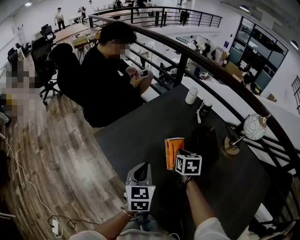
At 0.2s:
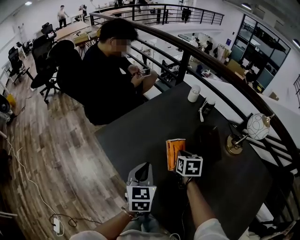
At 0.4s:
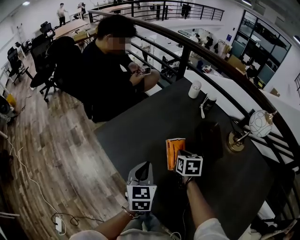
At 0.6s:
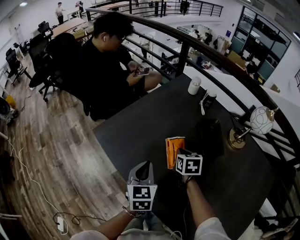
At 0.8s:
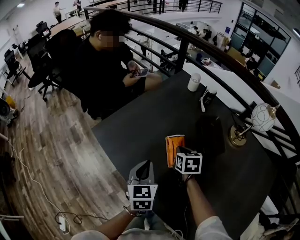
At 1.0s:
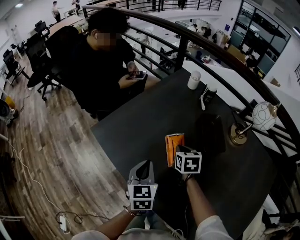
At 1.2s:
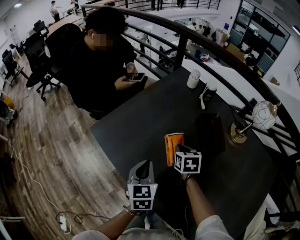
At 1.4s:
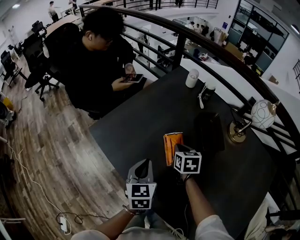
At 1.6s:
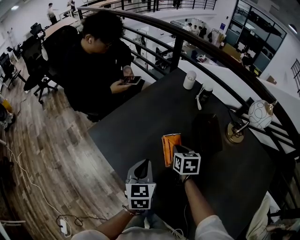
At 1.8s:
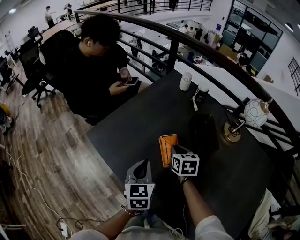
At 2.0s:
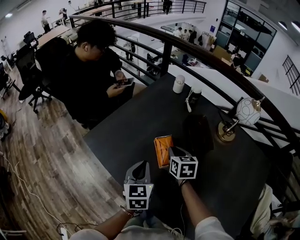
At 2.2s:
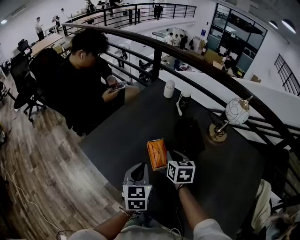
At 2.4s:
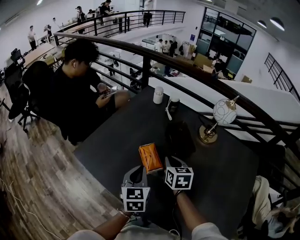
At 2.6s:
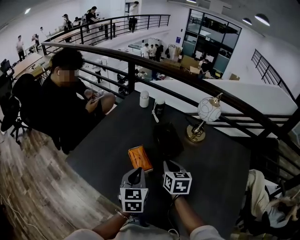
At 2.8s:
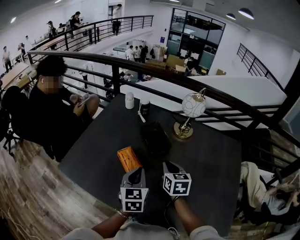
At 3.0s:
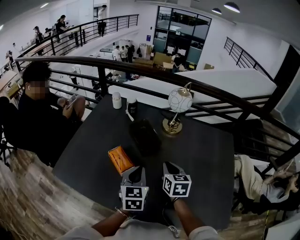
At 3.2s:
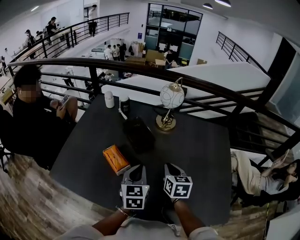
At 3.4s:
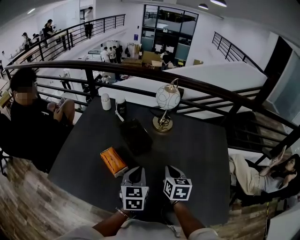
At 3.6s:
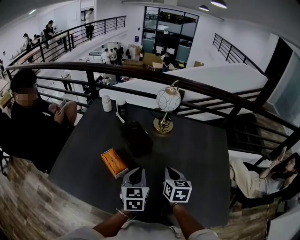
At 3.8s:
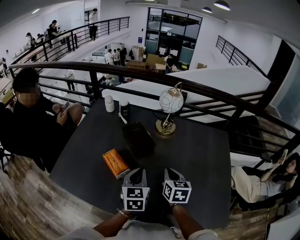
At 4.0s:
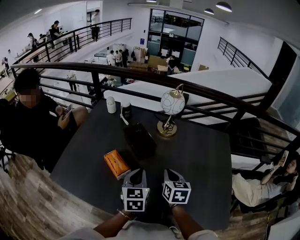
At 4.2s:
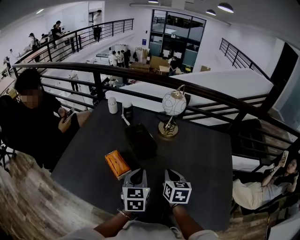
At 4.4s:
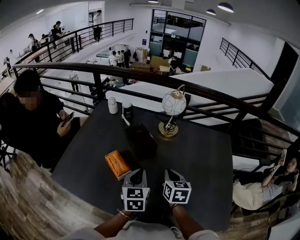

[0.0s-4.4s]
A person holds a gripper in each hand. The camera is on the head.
0.0s to 1.4s: There are only small adjustments of the grippers.
1.4s to 3.0s: The right gripper shifts by roughly 25 cm, and swivels about 30 degrees. Meanwhile the left gripper changes place by approximately 20 cm, and changes its angle by some 30 degrees.
3.0s to 4.4s: The grippers make only small movements.

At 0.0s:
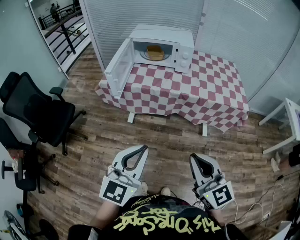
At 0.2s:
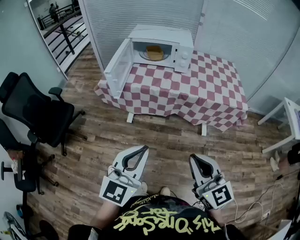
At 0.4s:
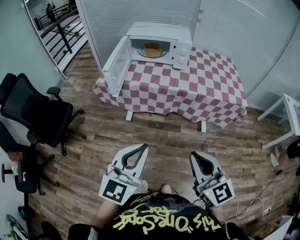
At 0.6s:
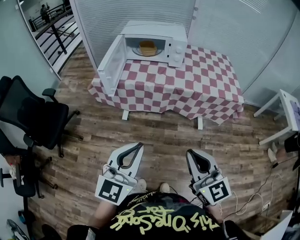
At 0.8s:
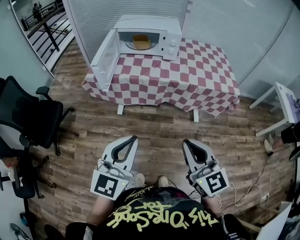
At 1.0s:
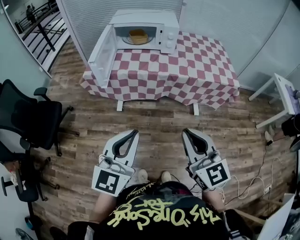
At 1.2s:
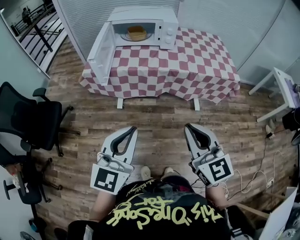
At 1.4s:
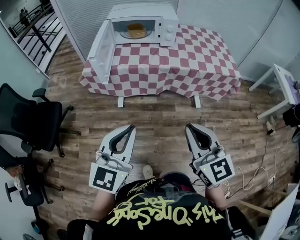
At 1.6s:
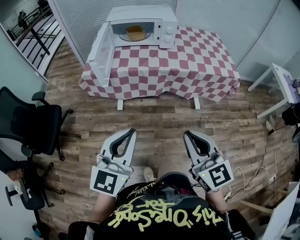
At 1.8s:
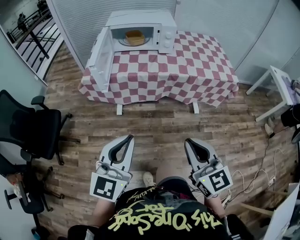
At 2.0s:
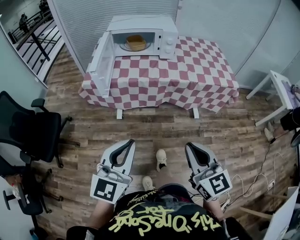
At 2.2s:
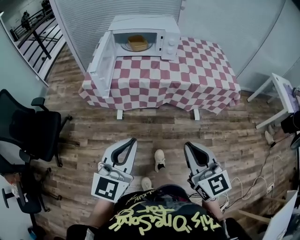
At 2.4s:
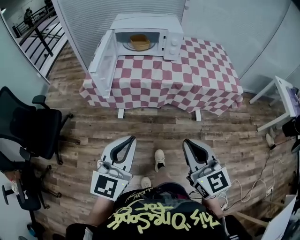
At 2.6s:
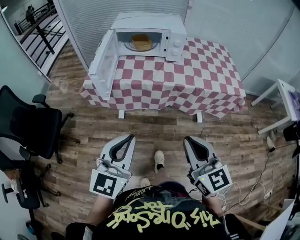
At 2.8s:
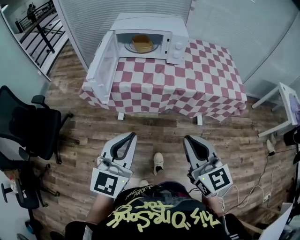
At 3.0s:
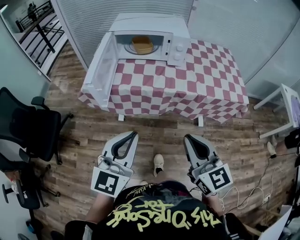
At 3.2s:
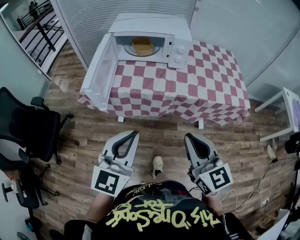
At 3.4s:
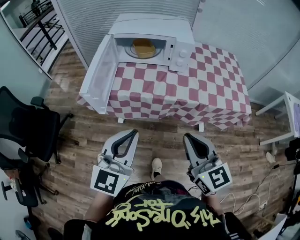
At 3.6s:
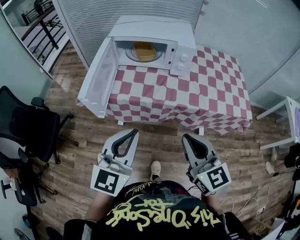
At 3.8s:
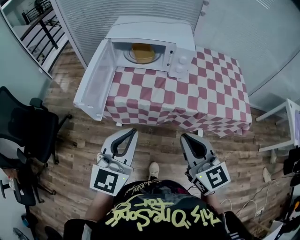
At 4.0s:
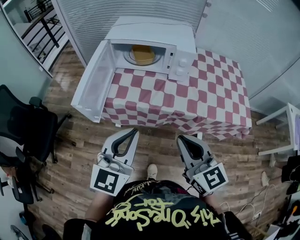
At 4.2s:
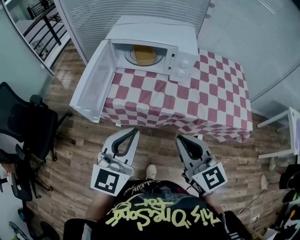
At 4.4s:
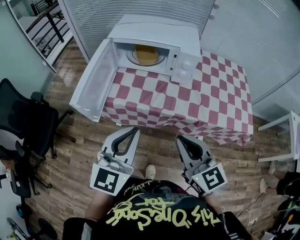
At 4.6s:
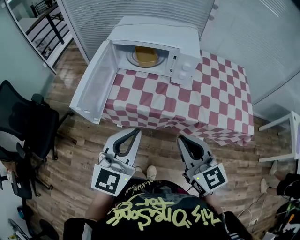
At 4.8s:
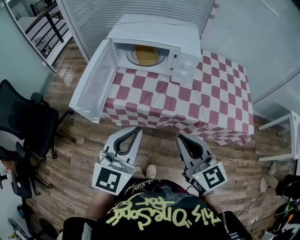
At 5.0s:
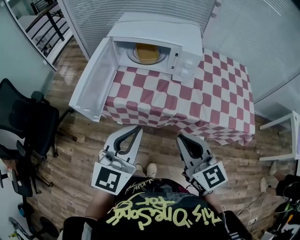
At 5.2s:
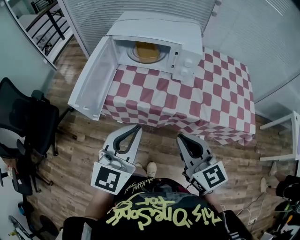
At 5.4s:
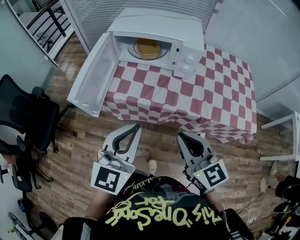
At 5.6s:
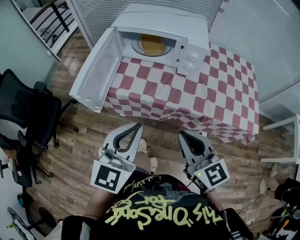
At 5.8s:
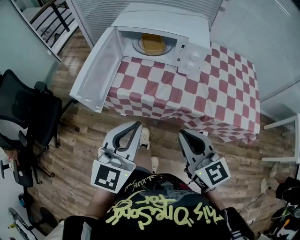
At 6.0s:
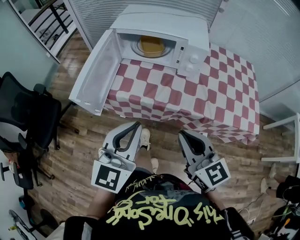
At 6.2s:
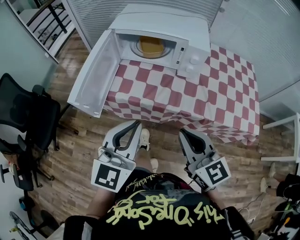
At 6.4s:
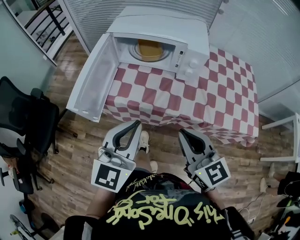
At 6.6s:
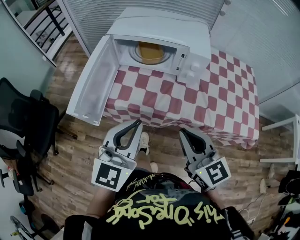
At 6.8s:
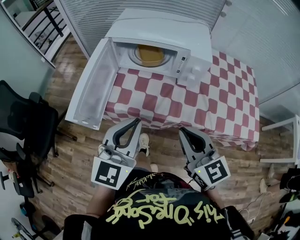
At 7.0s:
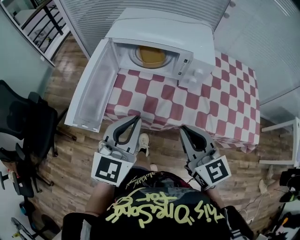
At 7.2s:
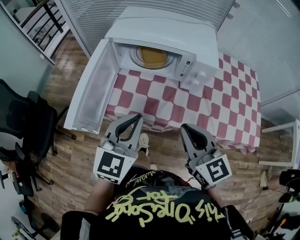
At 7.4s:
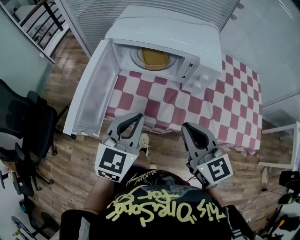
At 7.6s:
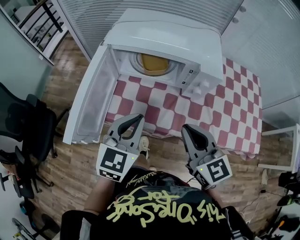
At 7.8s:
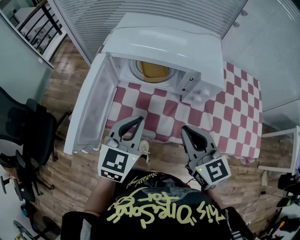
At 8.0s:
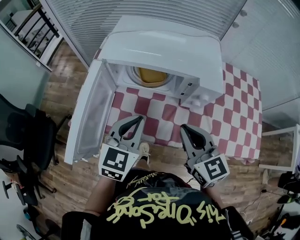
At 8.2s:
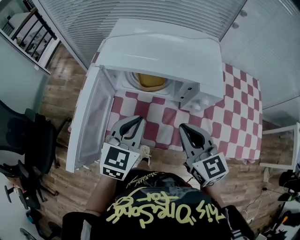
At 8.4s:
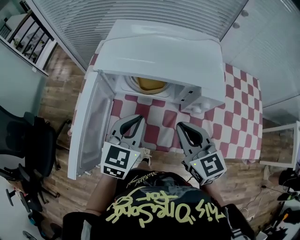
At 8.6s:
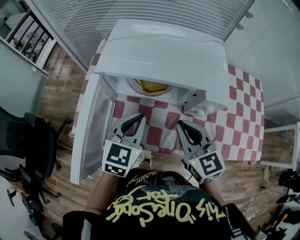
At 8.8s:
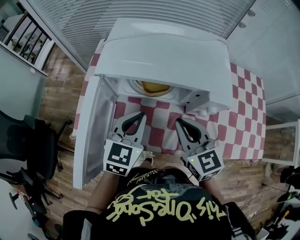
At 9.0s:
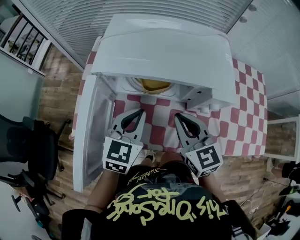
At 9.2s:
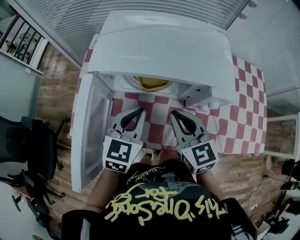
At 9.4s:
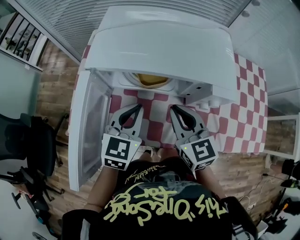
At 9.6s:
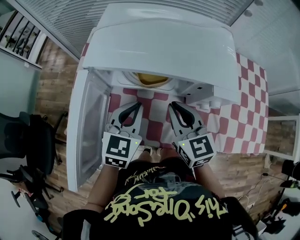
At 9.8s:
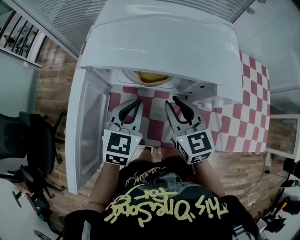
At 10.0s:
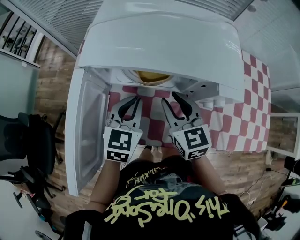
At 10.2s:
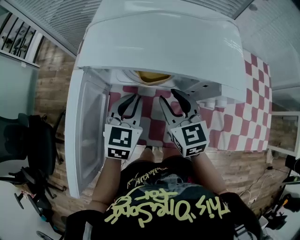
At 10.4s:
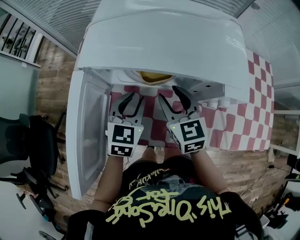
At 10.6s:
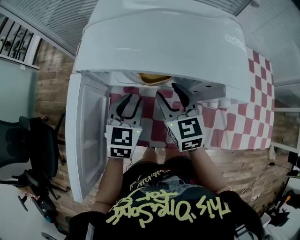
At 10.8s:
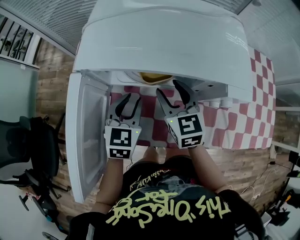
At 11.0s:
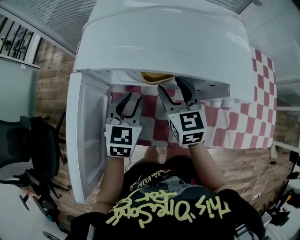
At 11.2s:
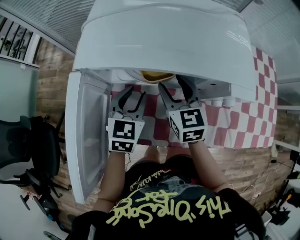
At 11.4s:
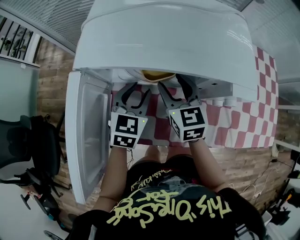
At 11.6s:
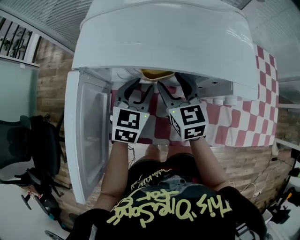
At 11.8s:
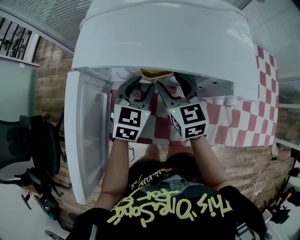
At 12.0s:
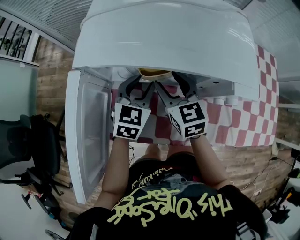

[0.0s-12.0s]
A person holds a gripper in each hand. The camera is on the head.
0.0s to 1.6s: Both grippers travel together to the left, about 5 cm.
1.6s to 3.0s: Both grippers move forward, approximately 15 cm.
3.0s to 4.4s: The left gripper moves forward and to the right, about 15 cm; the right gripper shifts about 15 cm forward.
4.4s to 6.0s: The grippers make only small movements.
6.0s to 7.6s: The grippers both shift forward by roughly 15 cm.
7.6s to 9.0s: The two grippers go roughly 15 cm forward.
9.0s to 10.4s: The right gripper moves forward and downward, approximately 10 cm, and opens; the left gripper is displaced downward by about 5 cm, and opens its fingers.
10.4s to 12.0s: The left gripper ends up approximately 5 cm from where it was.

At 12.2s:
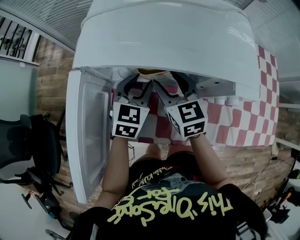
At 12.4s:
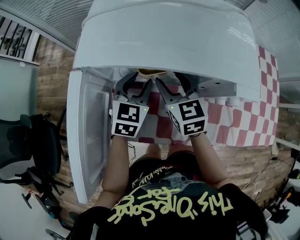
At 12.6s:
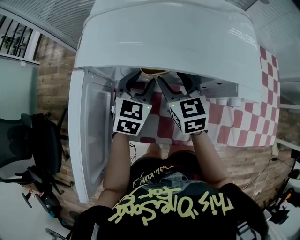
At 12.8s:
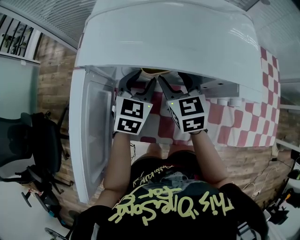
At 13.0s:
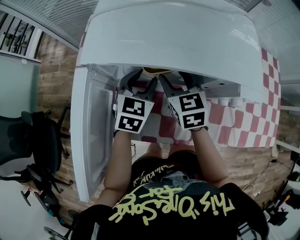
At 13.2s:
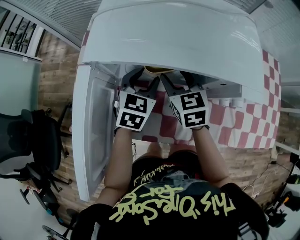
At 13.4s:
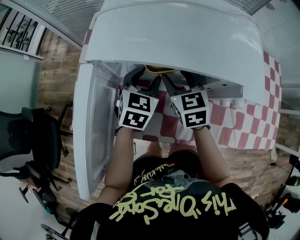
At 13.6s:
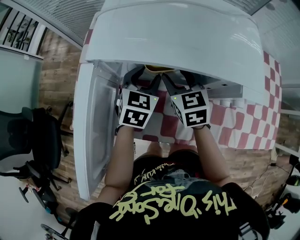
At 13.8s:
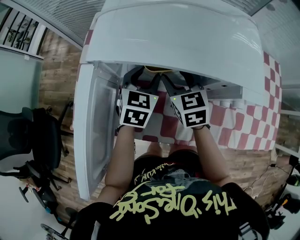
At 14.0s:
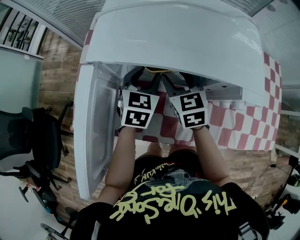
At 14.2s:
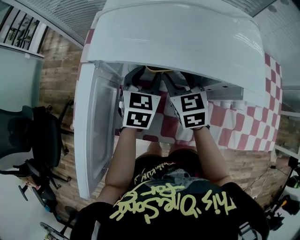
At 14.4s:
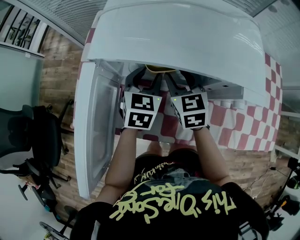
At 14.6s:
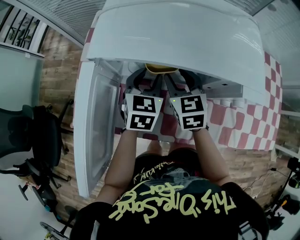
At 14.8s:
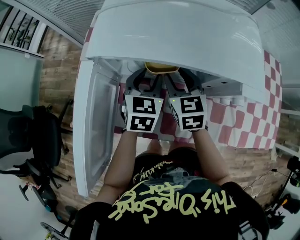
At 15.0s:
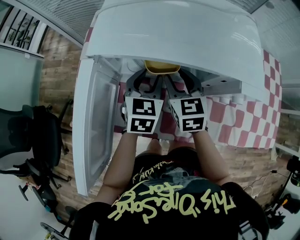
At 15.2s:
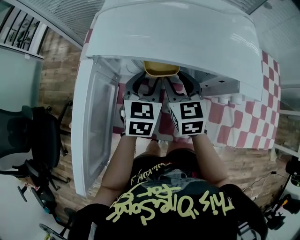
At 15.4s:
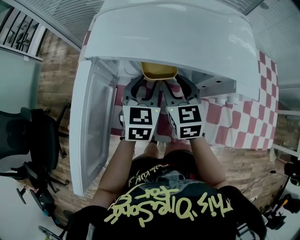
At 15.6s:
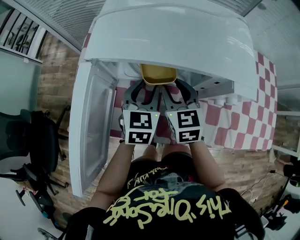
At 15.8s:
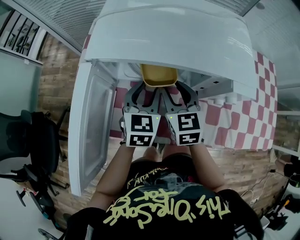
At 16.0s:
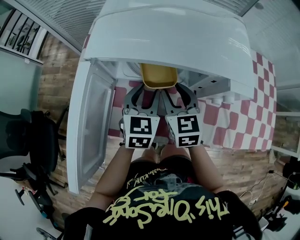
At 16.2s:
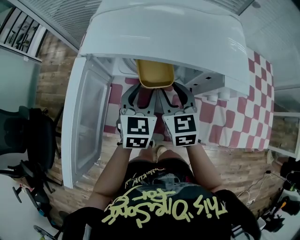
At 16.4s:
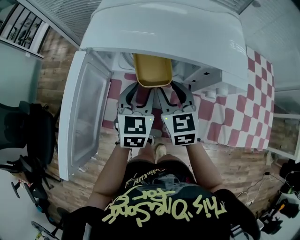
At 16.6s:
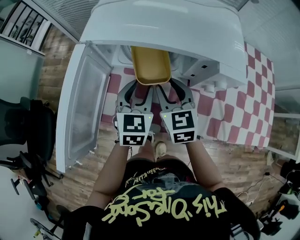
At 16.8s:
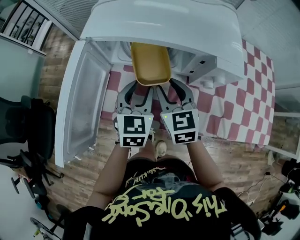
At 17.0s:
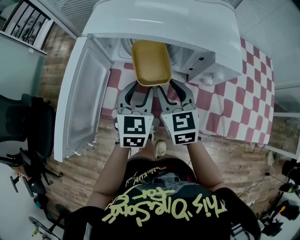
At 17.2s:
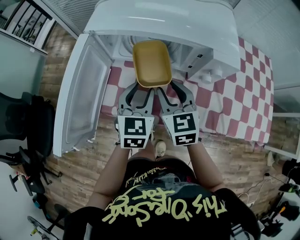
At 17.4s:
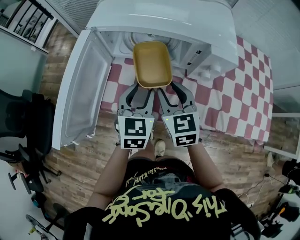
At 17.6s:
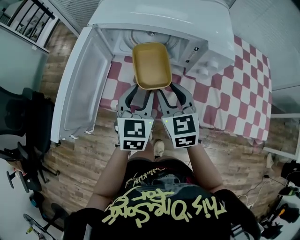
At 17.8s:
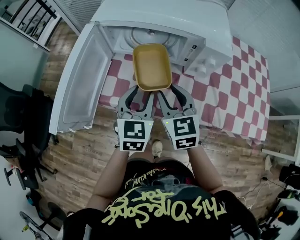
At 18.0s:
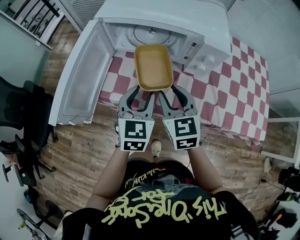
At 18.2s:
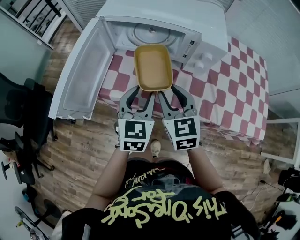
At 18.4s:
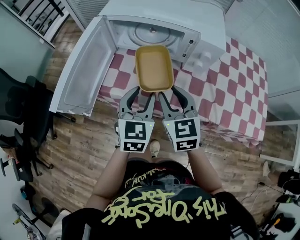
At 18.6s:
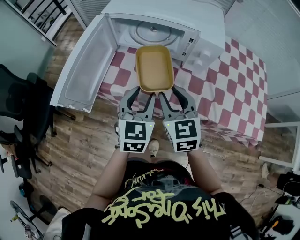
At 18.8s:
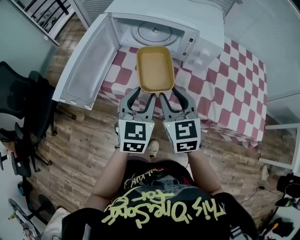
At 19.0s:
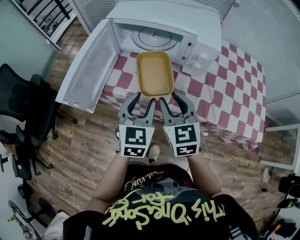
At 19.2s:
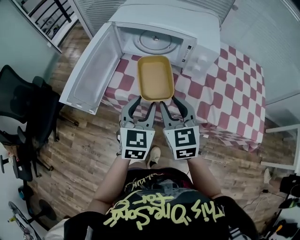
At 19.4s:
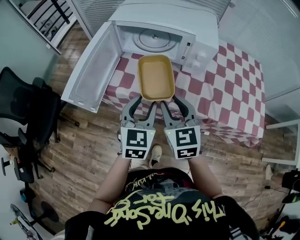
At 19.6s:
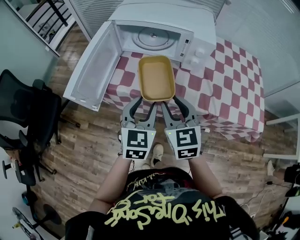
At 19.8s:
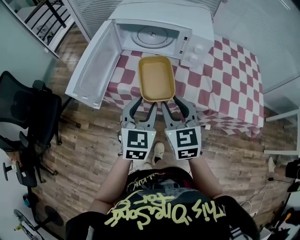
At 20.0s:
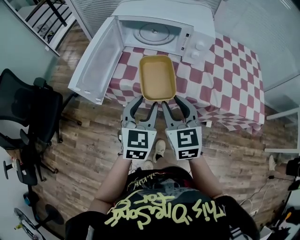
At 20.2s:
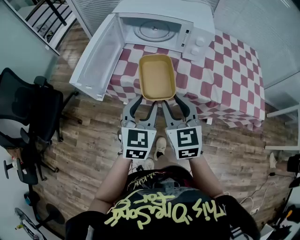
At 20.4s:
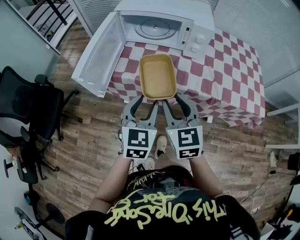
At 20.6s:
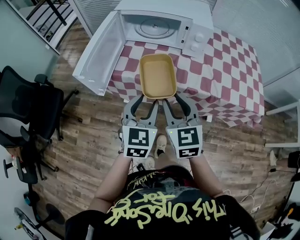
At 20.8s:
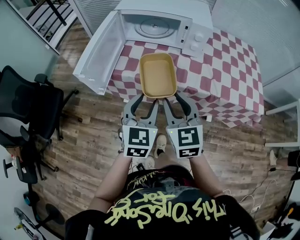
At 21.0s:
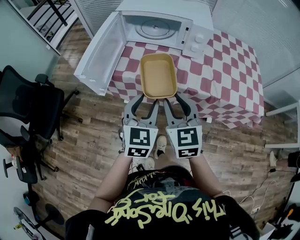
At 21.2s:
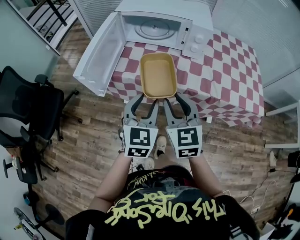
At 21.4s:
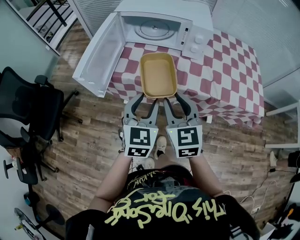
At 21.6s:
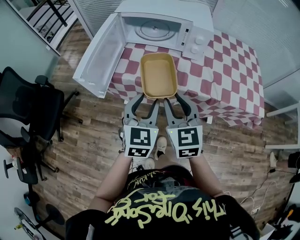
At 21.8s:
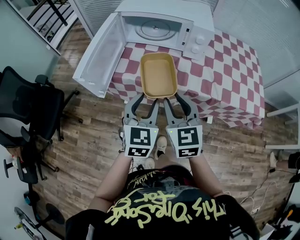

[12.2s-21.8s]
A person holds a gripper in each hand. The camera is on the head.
12.2s to 15.4s: The grippers make only small movements.
15.4s to 17.0s: The two grippers go about 10 cm backward.
17.0s to 18.6s: Both grippers travel together backward, roughly 10 cm.
18.6s to 20.2s: Both grippers travel together backward, approximately 10 cm.
20.2s to 21.8s: The grippers make only small movements.
